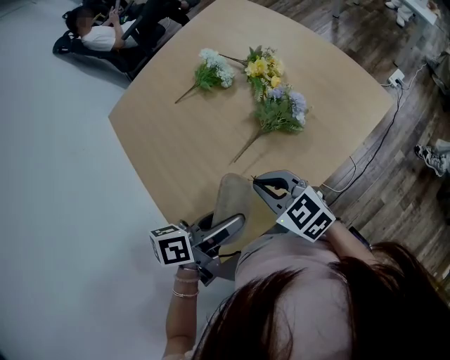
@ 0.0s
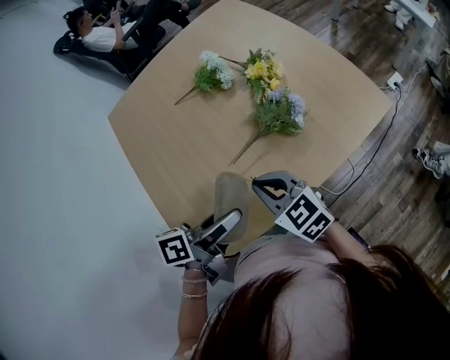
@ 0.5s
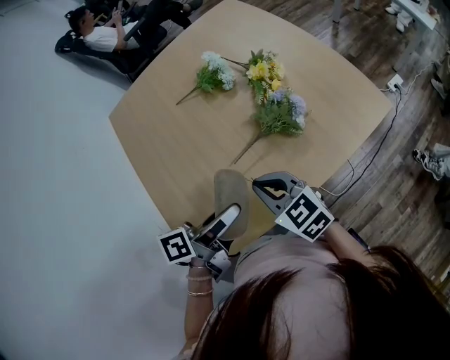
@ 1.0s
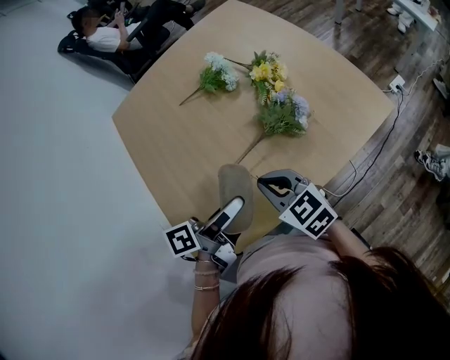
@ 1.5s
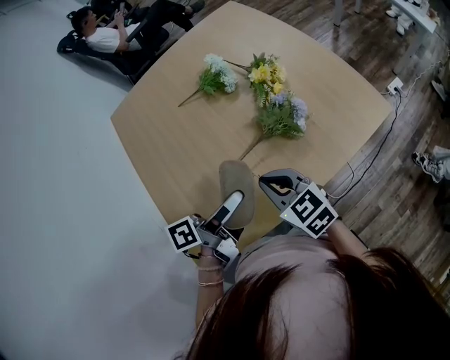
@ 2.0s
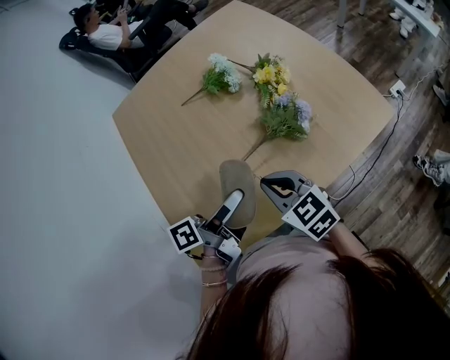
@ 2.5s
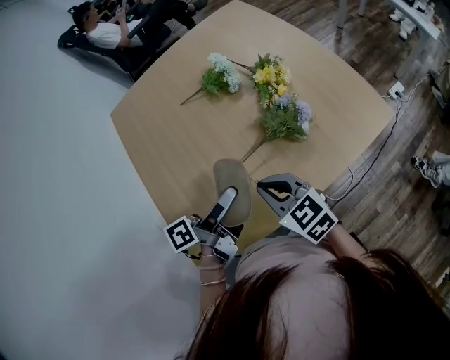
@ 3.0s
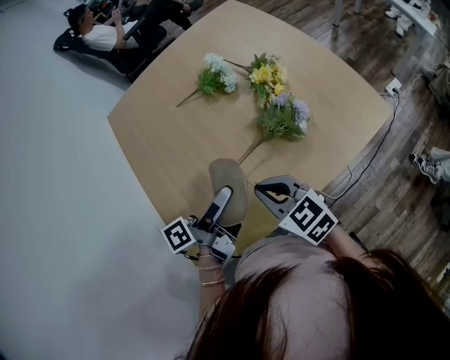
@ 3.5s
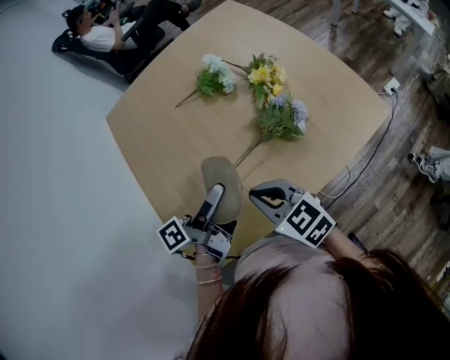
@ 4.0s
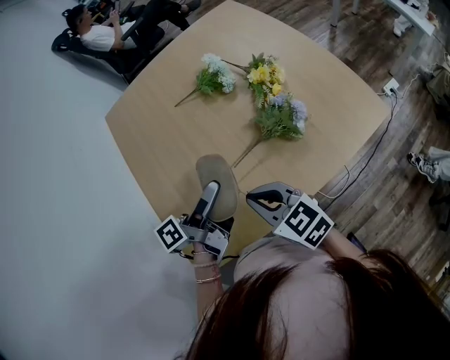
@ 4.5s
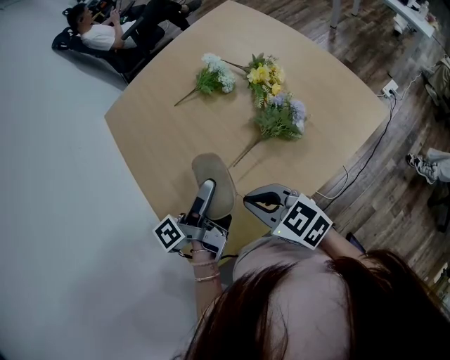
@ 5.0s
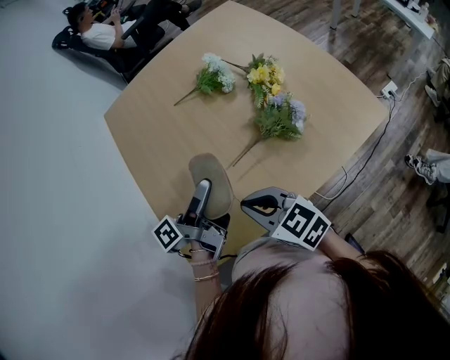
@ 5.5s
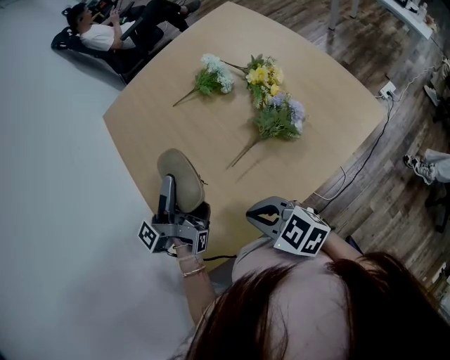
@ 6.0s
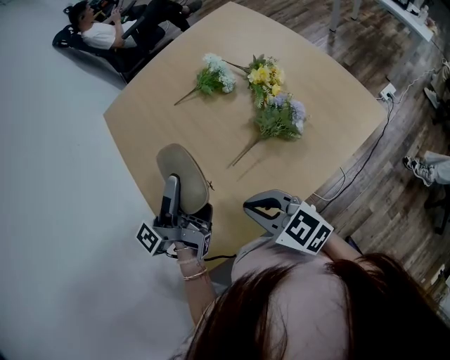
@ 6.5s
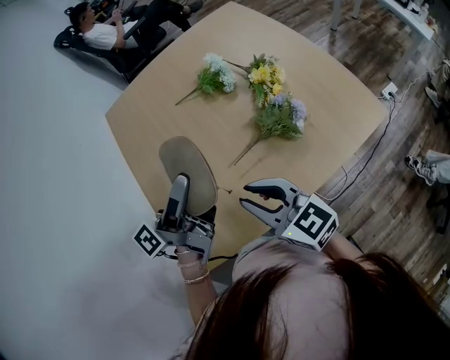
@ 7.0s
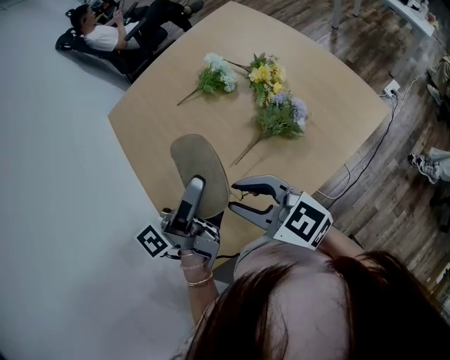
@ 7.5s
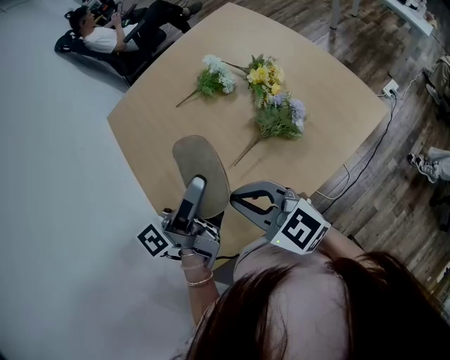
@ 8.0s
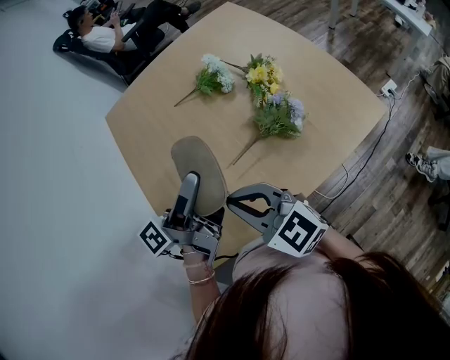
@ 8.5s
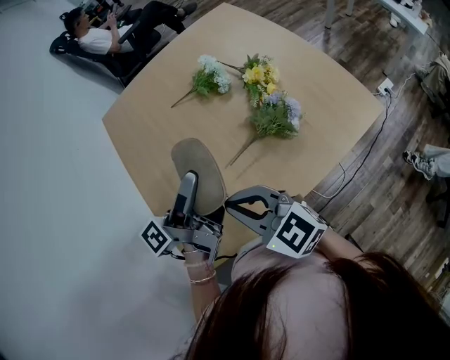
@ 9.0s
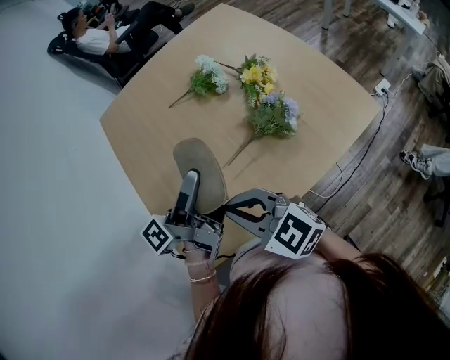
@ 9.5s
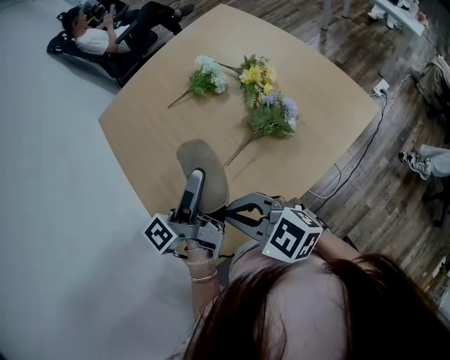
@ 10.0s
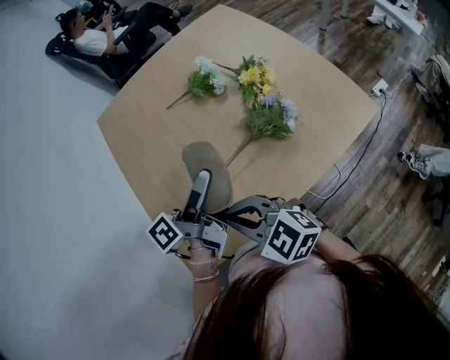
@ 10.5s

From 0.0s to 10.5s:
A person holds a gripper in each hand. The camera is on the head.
From 6.5s to 8.5s: The right gripper shifts roughly 5 cm upward, and opens and closes again.
From 8.5s to 10.5s: The right gripper ends up about 5 cm from where it was.

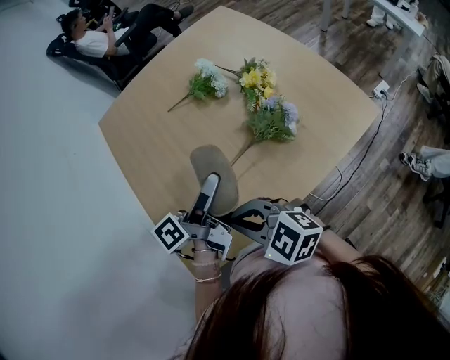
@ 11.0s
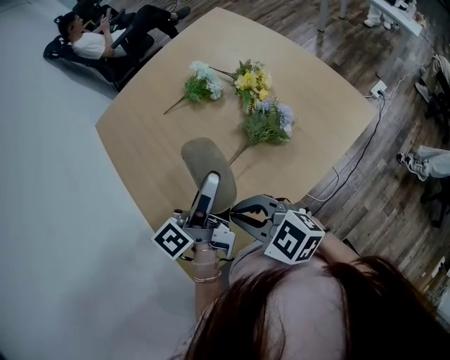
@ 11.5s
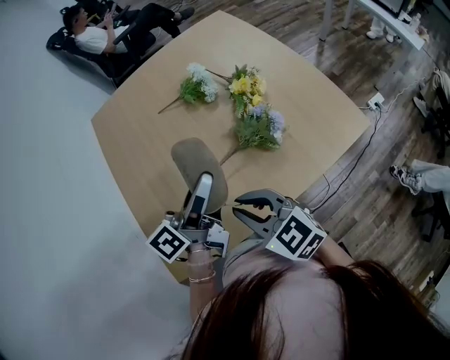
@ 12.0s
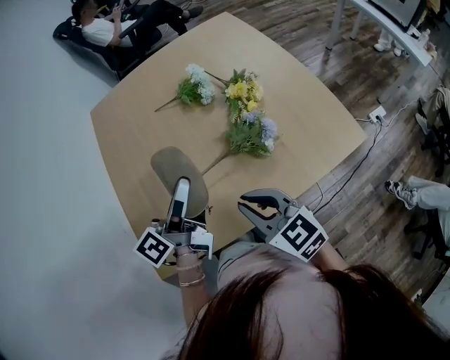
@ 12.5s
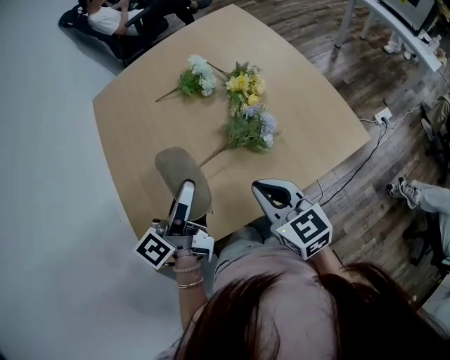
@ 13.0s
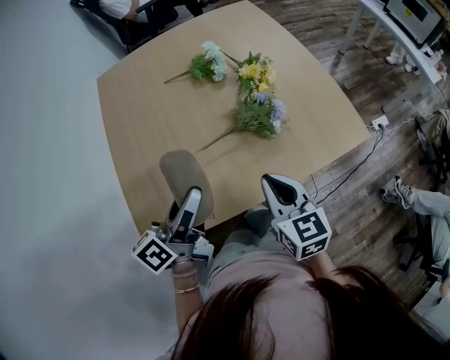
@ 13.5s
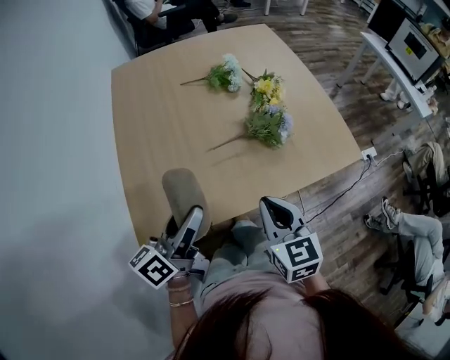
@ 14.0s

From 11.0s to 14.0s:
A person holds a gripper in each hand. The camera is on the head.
From 11.0s to 12.5s: The right gripper ends up about 15 cm from where it was, and changes its angle by roughly 20 degrees.
From 12.5s to 14.0s: The right gripper moves approximately 10 cm, and swivels about 20 degrees.

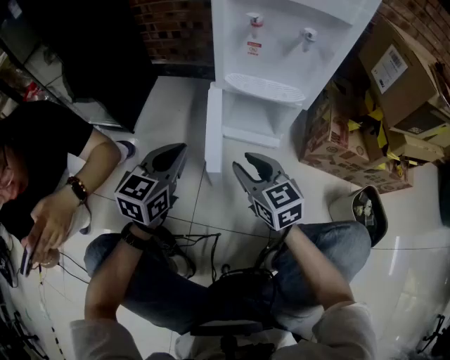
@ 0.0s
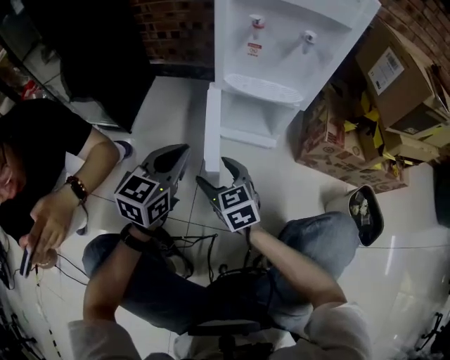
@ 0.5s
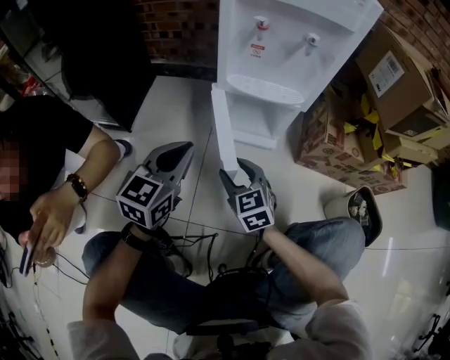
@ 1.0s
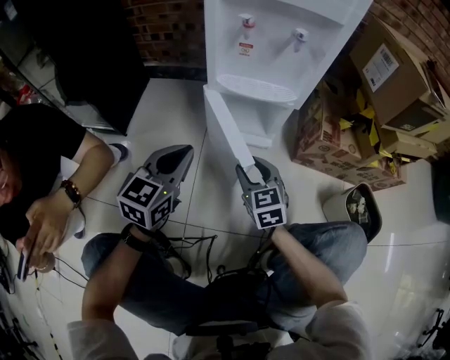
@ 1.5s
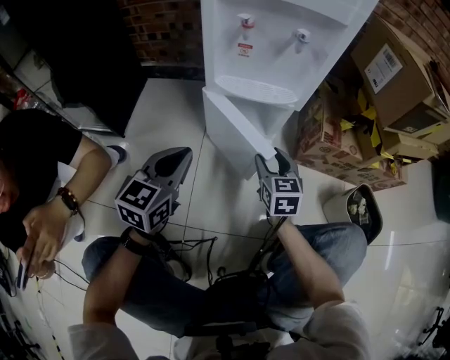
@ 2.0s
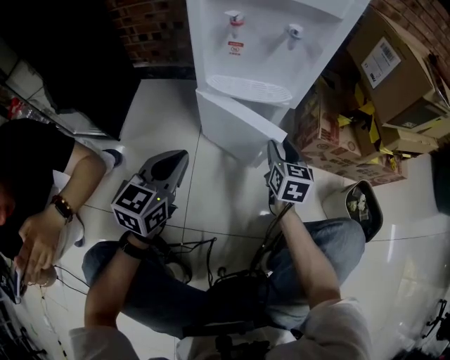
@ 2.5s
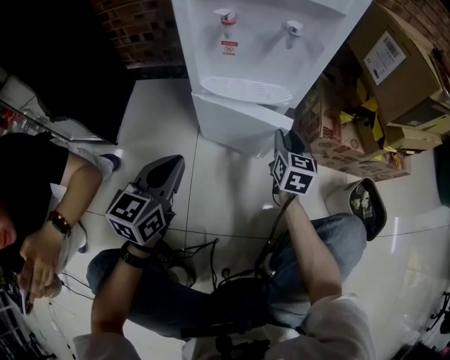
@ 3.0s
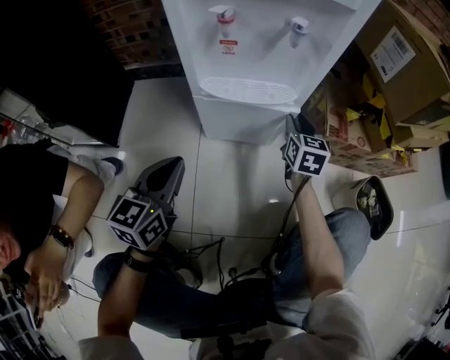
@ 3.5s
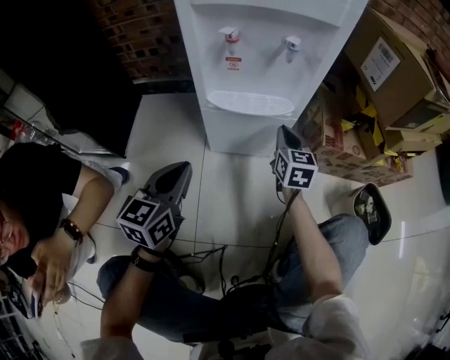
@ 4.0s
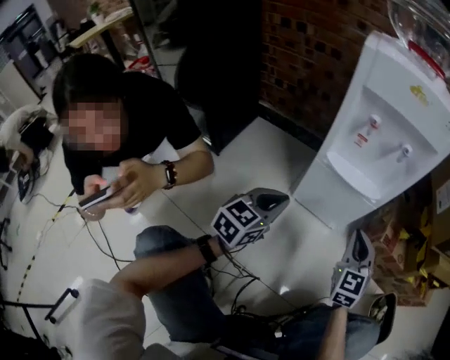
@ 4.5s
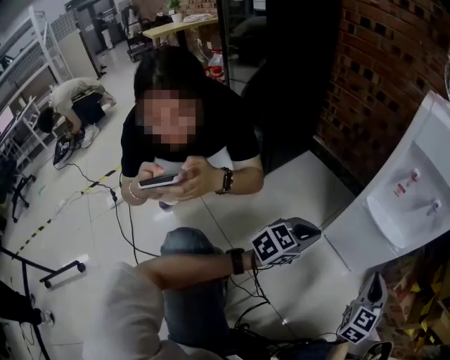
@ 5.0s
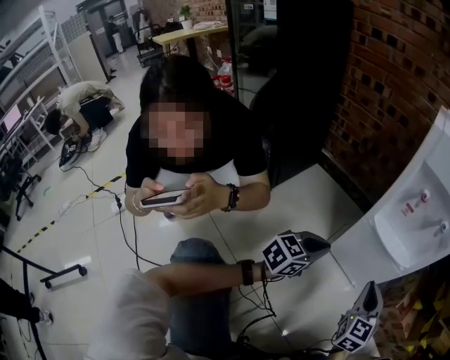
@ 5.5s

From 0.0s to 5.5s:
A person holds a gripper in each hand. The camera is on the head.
From 0.0s to 2.0s: The right gripper heads to the right, forward and downward, covering some 15 cm, changes its angle by about 30 degrees, and opens, then closes once more.
From 2.0s to 3.5s: The left gripper is displaced forward by roughly 5 cm. The right gripper shifts approximately 15 cm forward.
From 3.5s to 5.5s: The right gripper moves backward and upward, some 25 cm, and rotates about 40 degrees. Meanwhile the left gripper moves backward and to the right, about 10 cm.

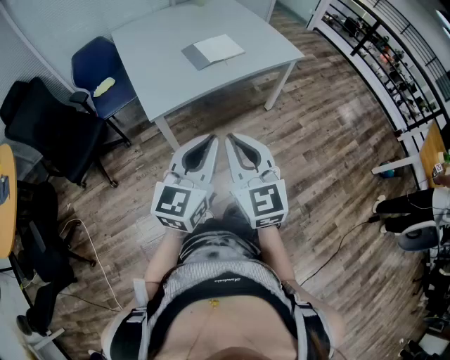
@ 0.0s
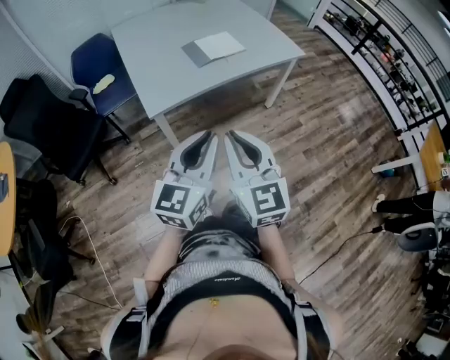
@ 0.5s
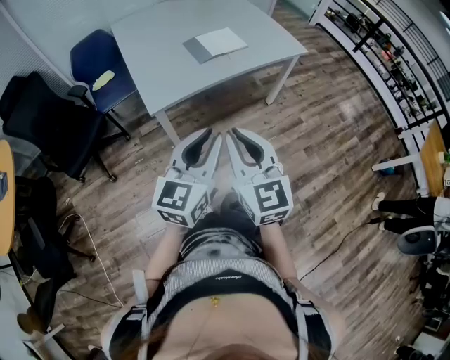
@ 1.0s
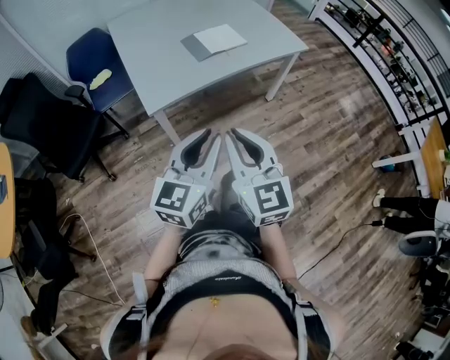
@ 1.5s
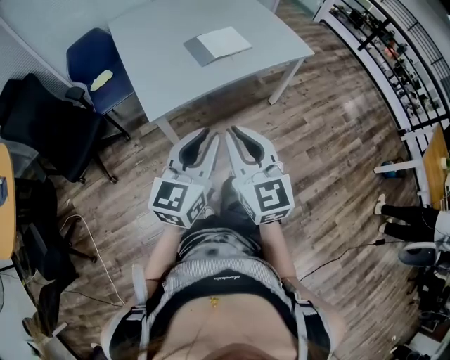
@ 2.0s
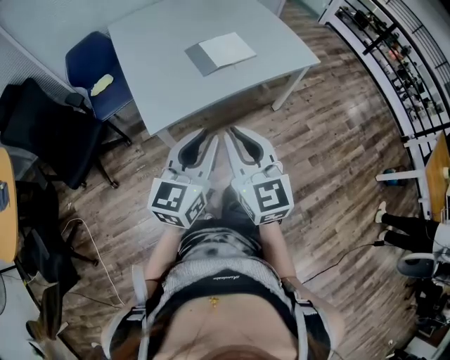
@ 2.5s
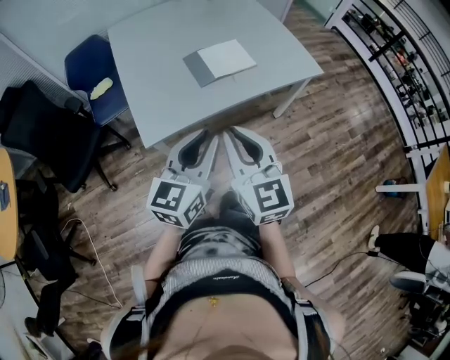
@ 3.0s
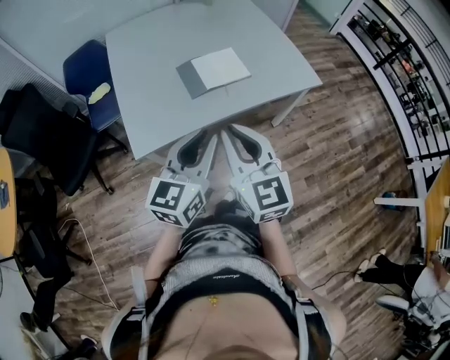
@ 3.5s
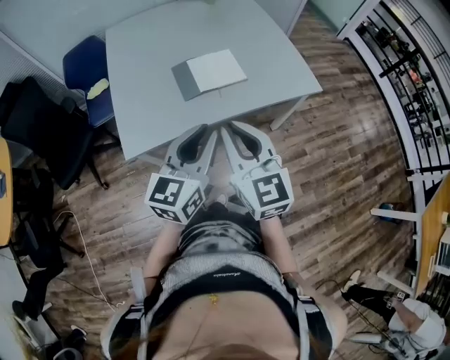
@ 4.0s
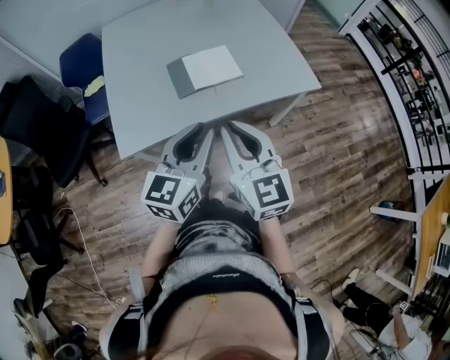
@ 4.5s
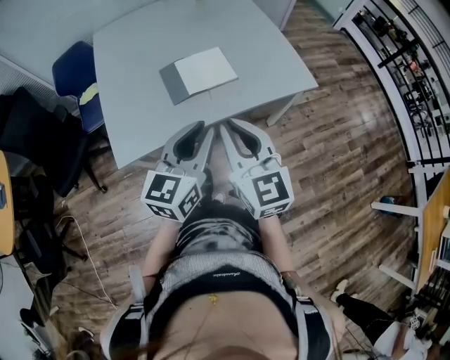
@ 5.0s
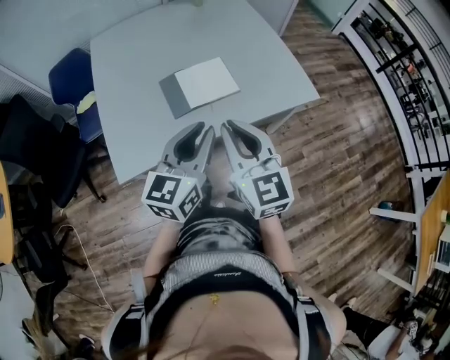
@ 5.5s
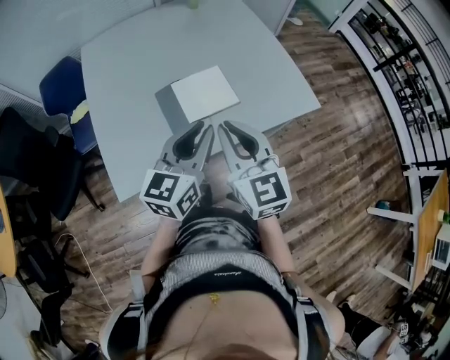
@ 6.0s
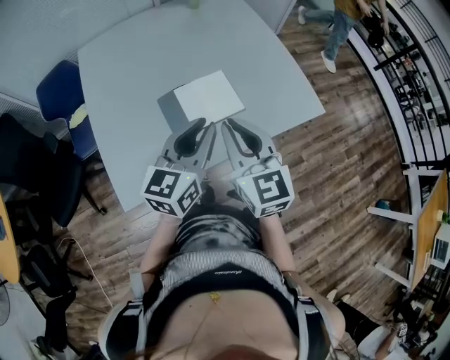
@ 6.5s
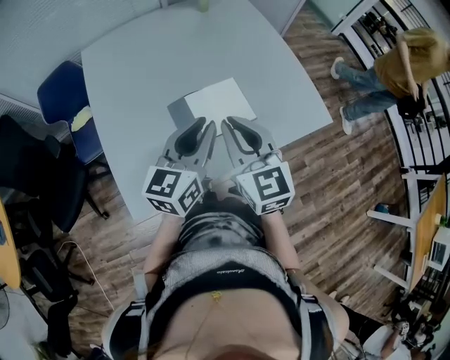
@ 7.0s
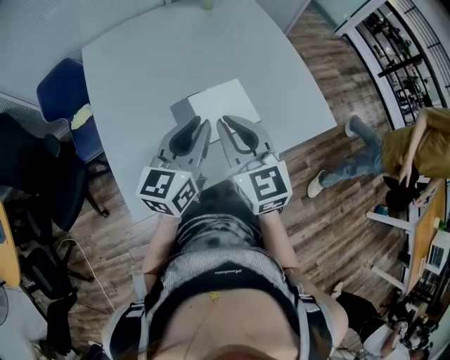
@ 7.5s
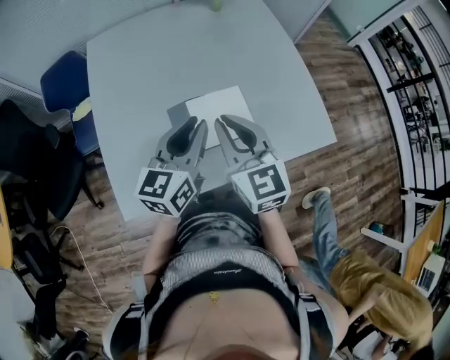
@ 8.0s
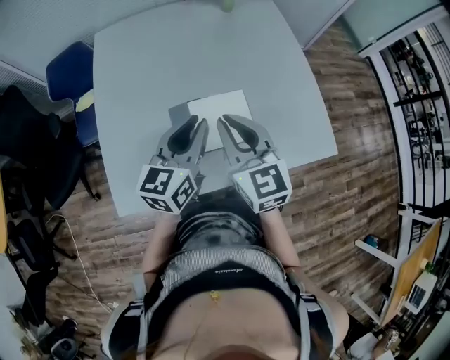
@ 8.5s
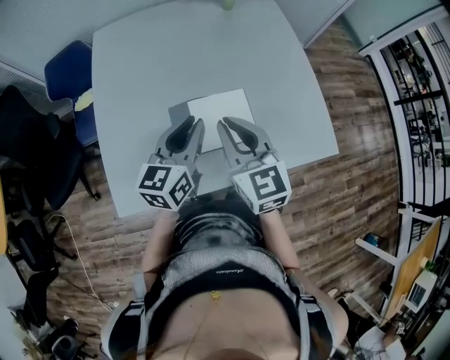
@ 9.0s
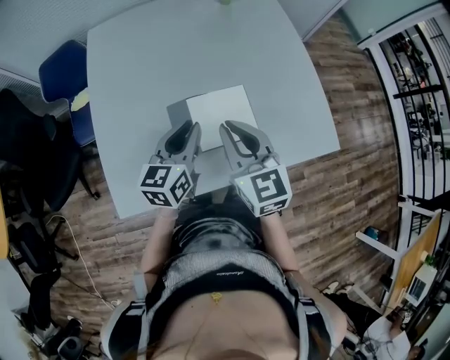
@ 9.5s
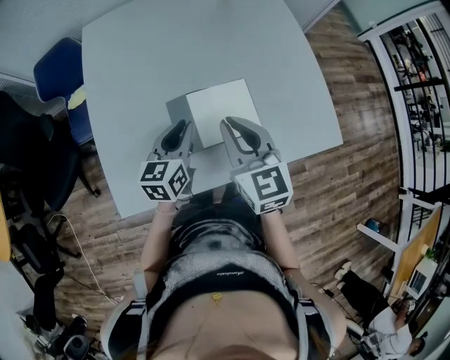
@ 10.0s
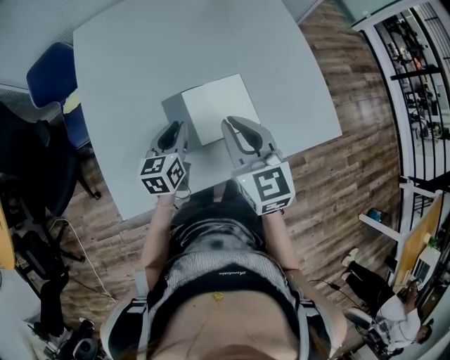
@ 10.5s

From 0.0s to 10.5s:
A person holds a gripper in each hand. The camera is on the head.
From 0.0s to 2.0s: The two grippers go roughly 10 cm forward.
From 2.0s to 4.0s: Both grippers move forward and to the right, some 25 cm.
From 4.0s to 6.5s: Both grippers travel together forward, some 20 cm.
From 6.5s to 8.5s: The right gripper travels forward by about 10 cm. The left gripper shifts roughly 15 cm forward and to the left.
From 8.5s to 10.5s: The left gripper moves downward, roughly 15 cm, and swivels roughly 20 degrees.
